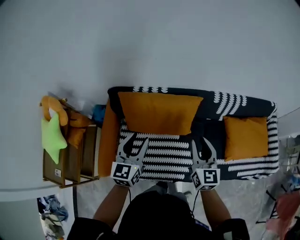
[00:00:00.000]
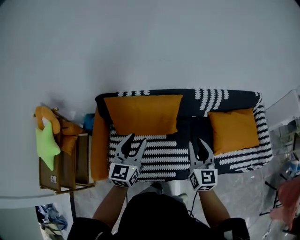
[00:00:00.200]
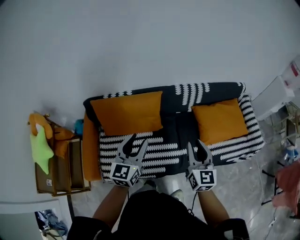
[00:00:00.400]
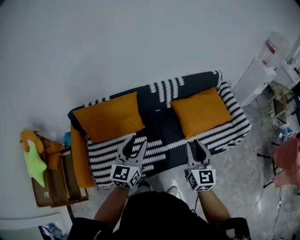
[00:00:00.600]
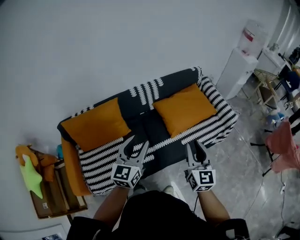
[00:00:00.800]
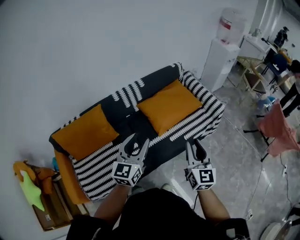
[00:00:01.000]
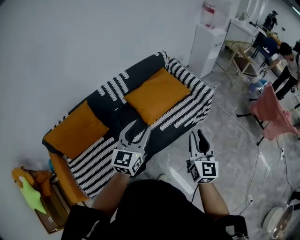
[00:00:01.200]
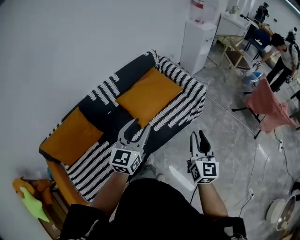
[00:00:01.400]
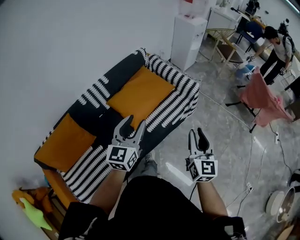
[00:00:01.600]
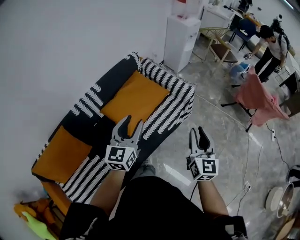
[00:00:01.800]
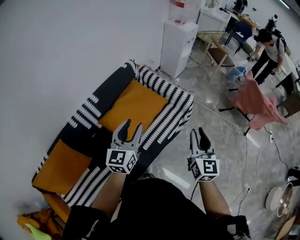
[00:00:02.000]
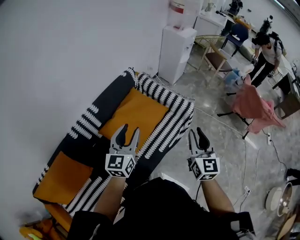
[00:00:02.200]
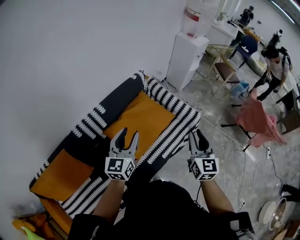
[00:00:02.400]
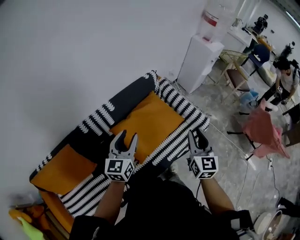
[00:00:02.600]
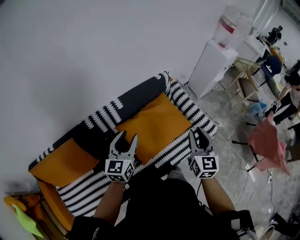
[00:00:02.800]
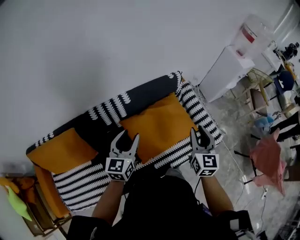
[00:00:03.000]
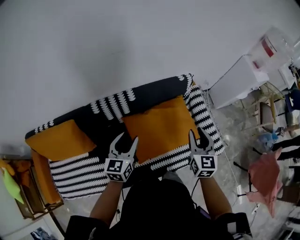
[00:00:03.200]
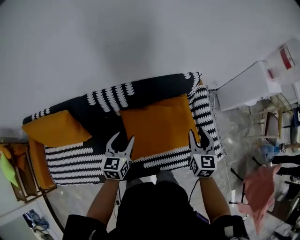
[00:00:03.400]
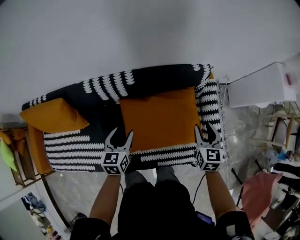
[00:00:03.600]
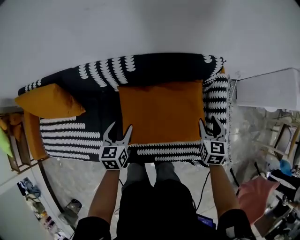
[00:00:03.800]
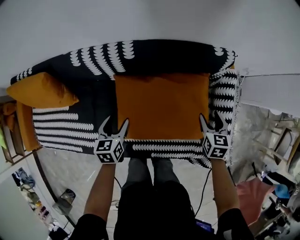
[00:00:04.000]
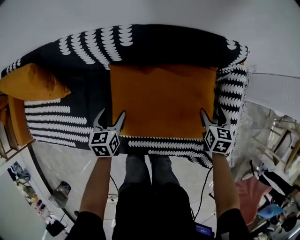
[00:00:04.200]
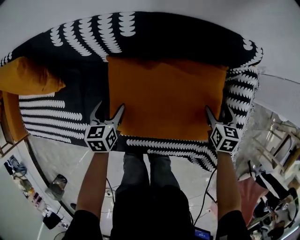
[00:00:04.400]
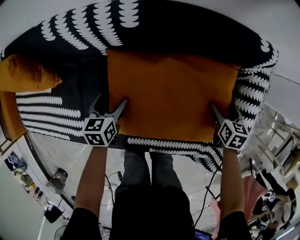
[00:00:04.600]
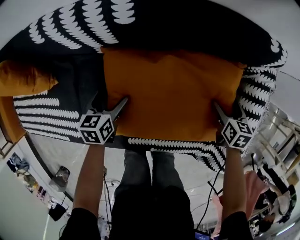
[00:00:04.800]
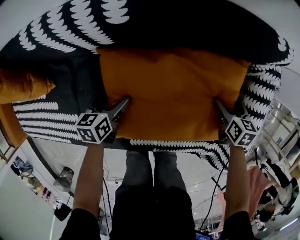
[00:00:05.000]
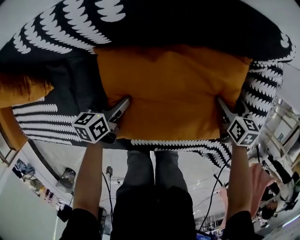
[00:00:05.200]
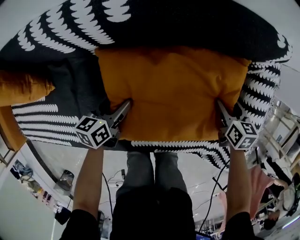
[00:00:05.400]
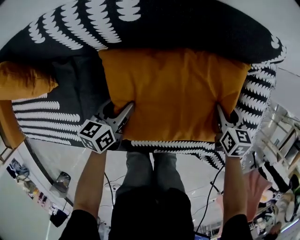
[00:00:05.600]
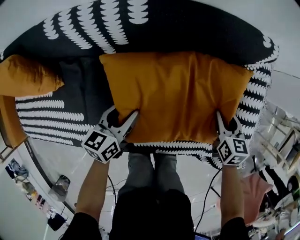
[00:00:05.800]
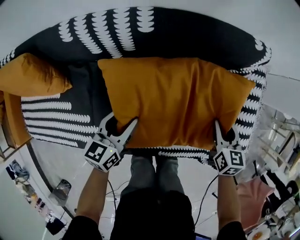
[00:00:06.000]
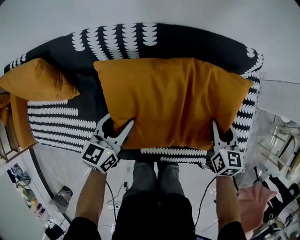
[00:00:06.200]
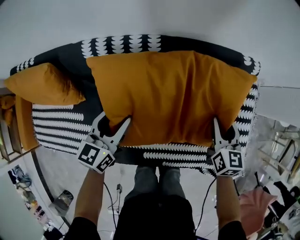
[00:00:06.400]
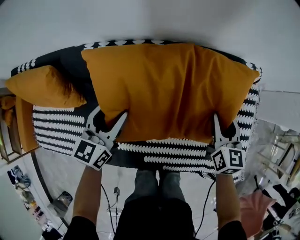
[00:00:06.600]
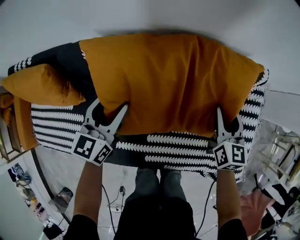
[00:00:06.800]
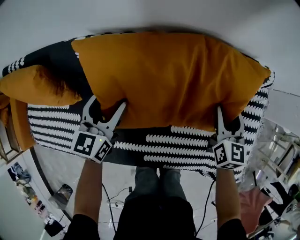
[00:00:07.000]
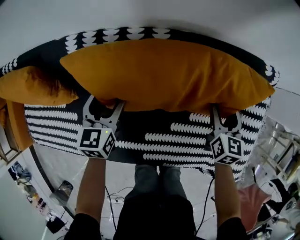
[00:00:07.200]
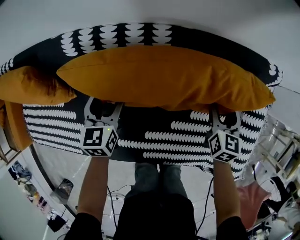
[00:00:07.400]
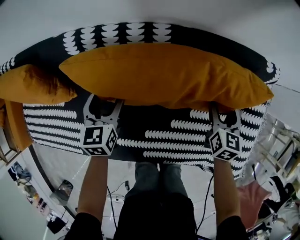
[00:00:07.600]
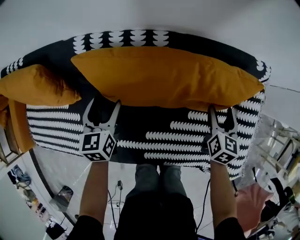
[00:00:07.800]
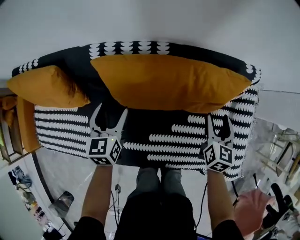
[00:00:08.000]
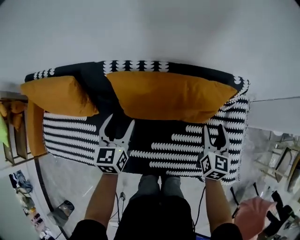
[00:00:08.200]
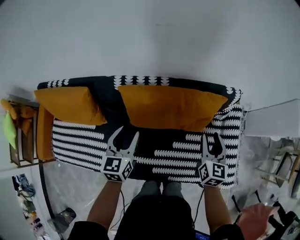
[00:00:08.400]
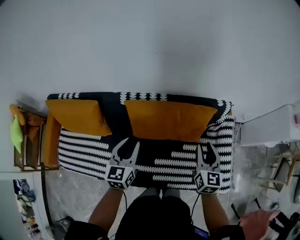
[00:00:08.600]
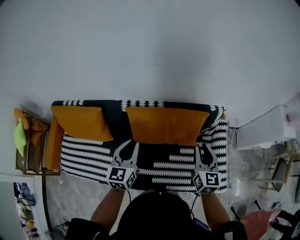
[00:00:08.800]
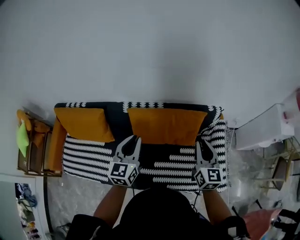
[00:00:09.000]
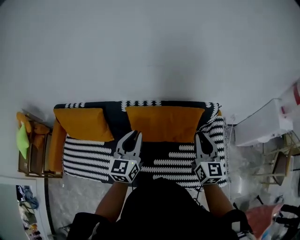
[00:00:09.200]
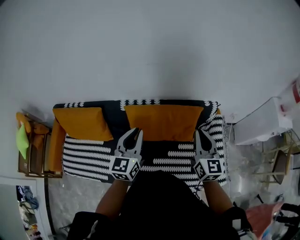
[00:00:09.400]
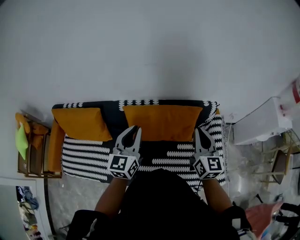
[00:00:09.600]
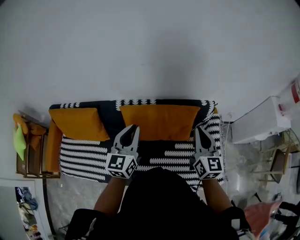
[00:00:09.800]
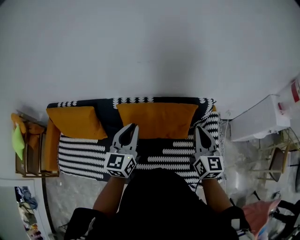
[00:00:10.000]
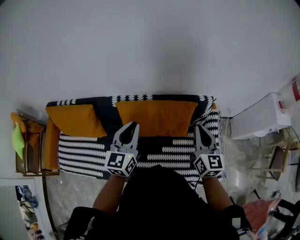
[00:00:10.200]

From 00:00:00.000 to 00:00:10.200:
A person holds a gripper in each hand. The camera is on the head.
From 00:00:00.000 to 00:00:01.400: The pair of grippers is taken some 60 cm. The left gripper rotates roughly 50 degrees. Meanwhile the right gripper swivels roughly 50 degrees.
From 00:00:01.400 to 00:00:03.000: Both grippers travel together forward and to the left, roughly 35 cm. The left gripper turns by approximately 20 degrees. The right gripper turns by approximately 20 degrees.
From 00:00:03.000 to 00:00:04.400: The grippers both shift downward by roughly 40 cm. The right gripper angles its fingers downward, by roughly 40 degrees, and opens; the left gripper tilts its fingers some 40 degrees downward.
From 00:00:04.400 to 00:00:05.800: The left gripper travels downward and back again, approximately 10 cm each way, and rotates some 30 degrees; the right gripper reaches some 5 cm downward, then returns, and closes.
From 00:00:05.800 to 00:00:07.200: The left gripper moves to the left and forward, approximately 15 cm, goes upward and returns, roughly 15 cm each way, and rotates approximately 30 degrees. The right gripper is displaced forward and to the left by approximately 15 cm, and reaches approximately 15 cm upward, then returns.
From 00:00:07.200 to 00:00:08.800: The two grippers go approximately 35 cm upward and backward. The left gripper rotates approximately 20 degrees, and closes its fingers, while the right gripper rotates about 20 degrees.
From 00:00:08.800 to 00:00:10.200: The left gripper heads to the right and upward, covering approximately 10 cm, while the right gripper heads upward, covering roughly 5 cm.

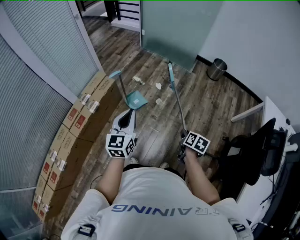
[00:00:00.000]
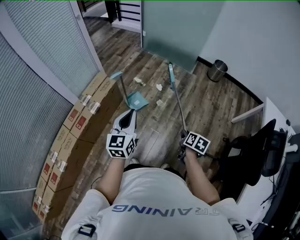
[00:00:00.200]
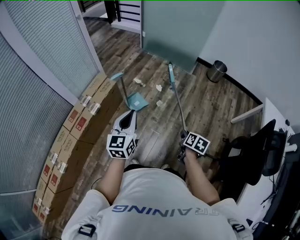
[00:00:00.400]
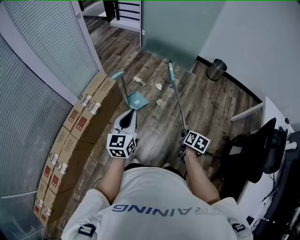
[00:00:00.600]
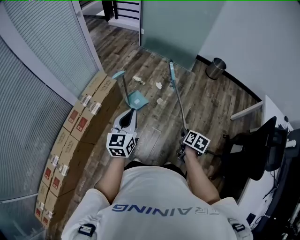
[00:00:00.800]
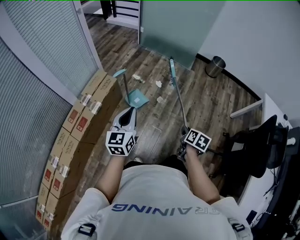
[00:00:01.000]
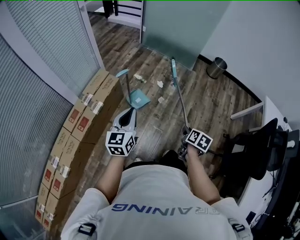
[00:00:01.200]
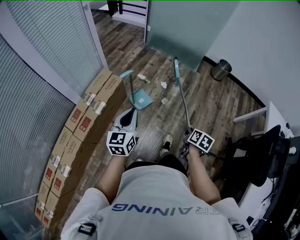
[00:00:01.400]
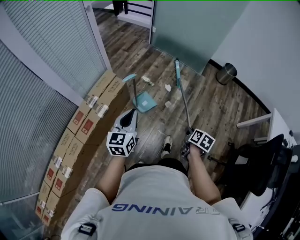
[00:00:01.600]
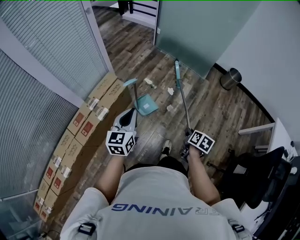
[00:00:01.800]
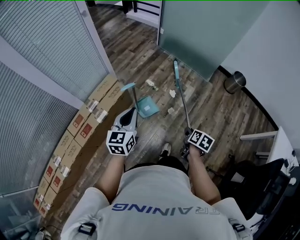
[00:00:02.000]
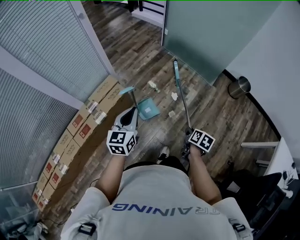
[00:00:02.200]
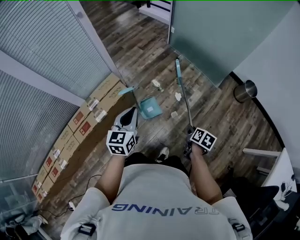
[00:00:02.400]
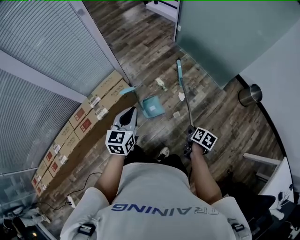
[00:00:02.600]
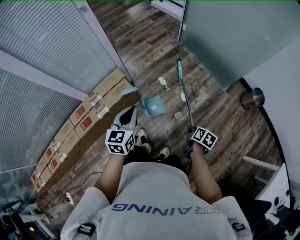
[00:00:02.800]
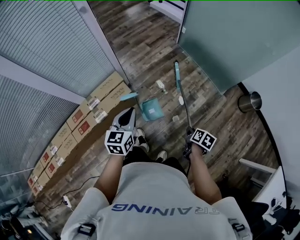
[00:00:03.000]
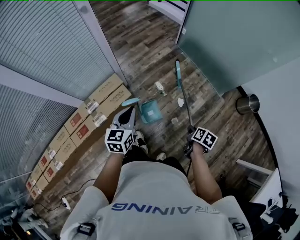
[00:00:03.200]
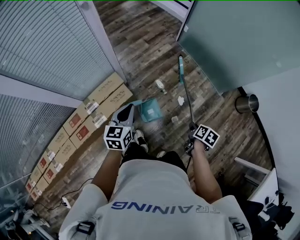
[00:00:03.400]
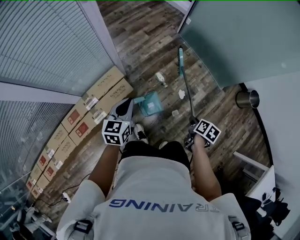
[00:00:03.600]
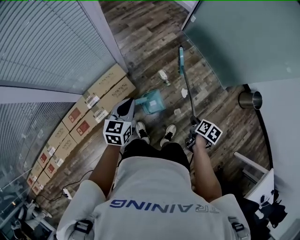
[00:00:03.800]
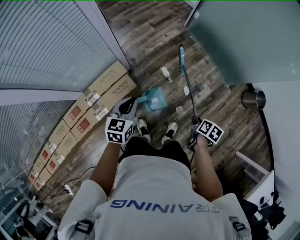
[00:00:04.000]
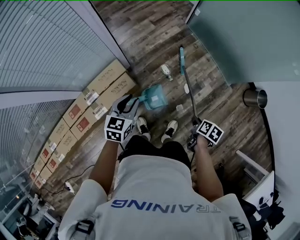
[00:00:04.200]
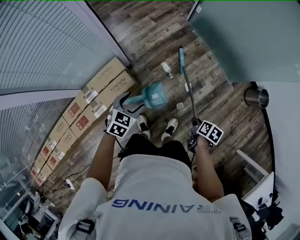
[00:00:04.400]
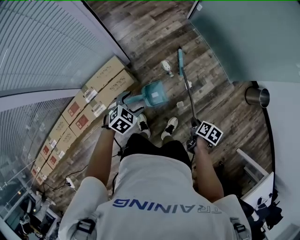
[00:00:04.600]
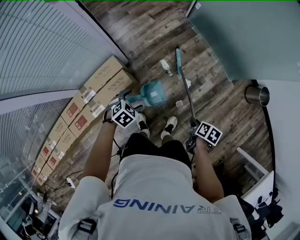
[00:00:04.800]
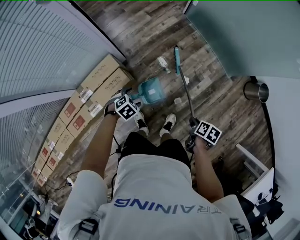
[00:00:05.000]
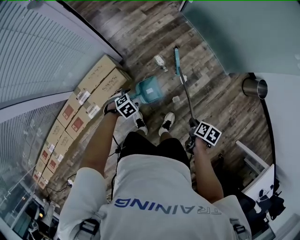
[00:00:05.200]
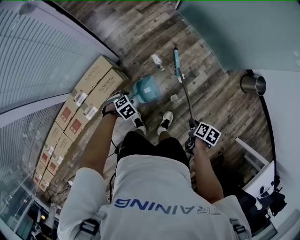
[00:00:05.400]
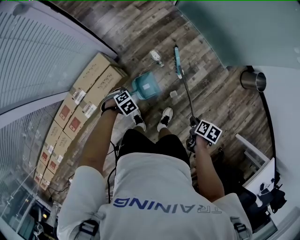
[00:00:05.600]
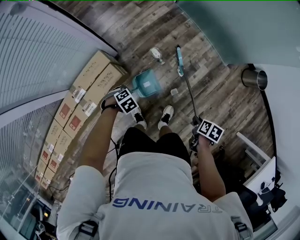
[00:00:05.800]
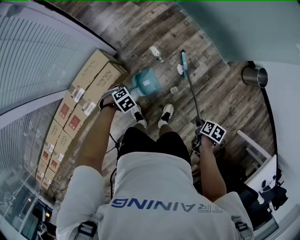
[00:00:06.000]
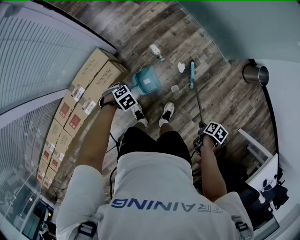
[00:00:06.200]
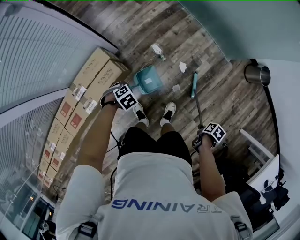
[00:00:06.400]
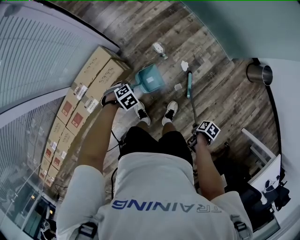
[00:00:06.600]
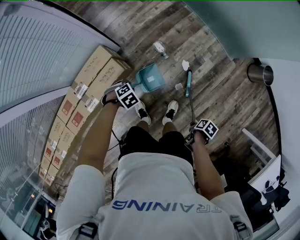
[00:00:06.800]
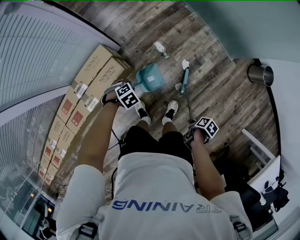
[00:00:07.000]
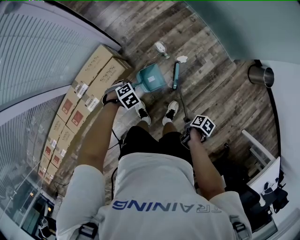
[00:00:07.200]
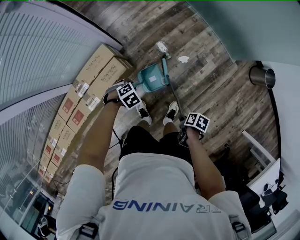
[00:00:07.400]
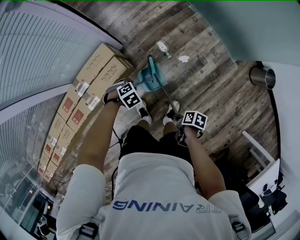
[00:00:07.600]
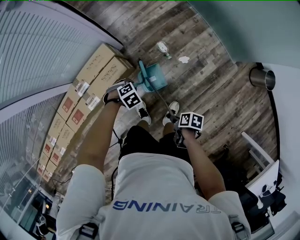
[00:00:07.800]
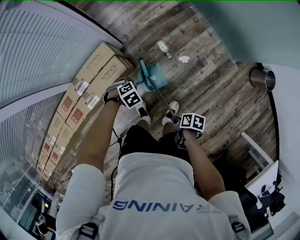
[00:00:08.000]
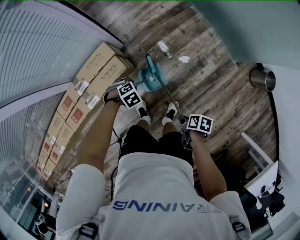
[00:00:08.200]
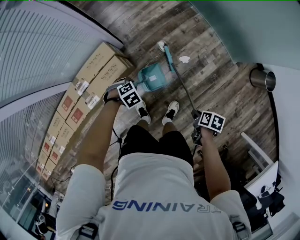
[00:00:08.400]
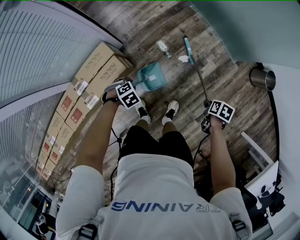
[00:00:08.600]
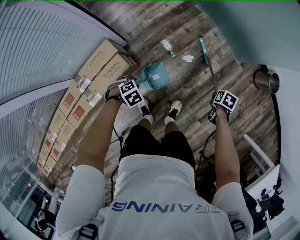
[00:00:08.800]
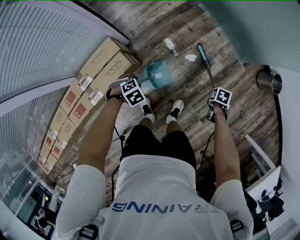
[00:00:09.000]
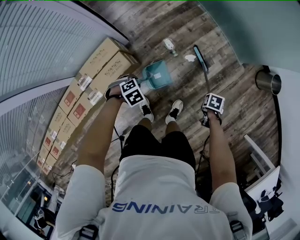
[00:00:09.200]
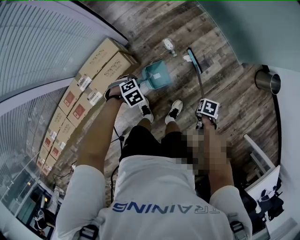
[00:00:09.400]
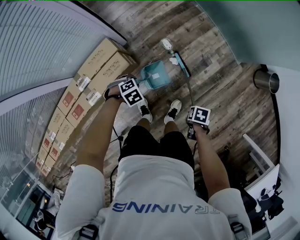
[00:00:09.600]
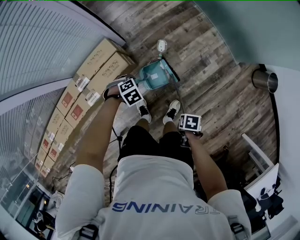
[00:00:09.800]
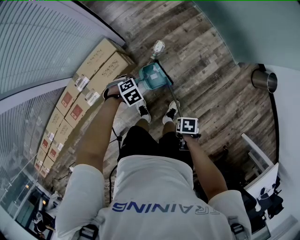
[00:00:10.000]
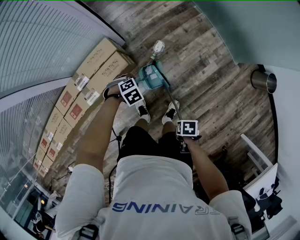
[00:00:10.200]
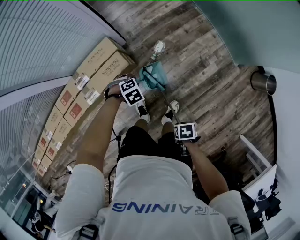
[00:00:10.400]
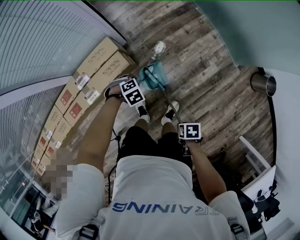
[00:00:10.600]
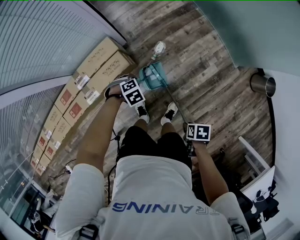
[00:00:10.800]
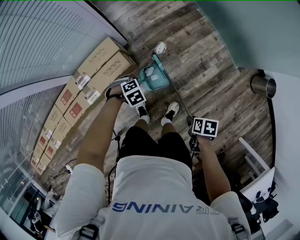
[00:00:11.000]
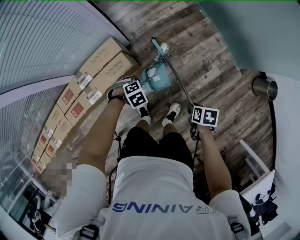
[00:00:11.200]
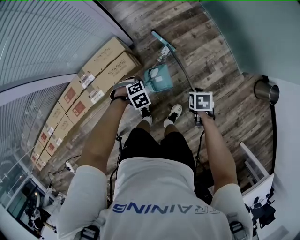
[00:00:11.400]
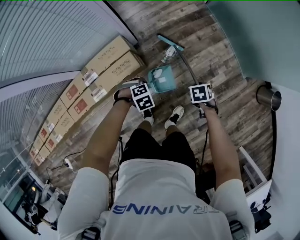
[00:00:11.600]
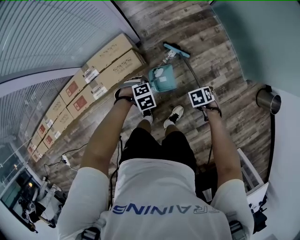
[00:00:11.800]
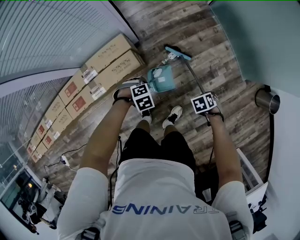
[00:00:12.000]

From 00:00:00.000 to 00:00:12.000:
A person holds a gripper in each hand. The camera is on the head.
From 00:00:00.000 to 00:00:01.600: The left gripper ends up roughly 15 cm from where it was.
From 00:00:01.600 to 00:00:03.000: The left gripper moves approximately 25 cm.
From 00:00:03.000 to 00:00:04.400: The left gripper shifts about 15 cm downward, changes its angle by about 40 degrees, and opens its fingers.
From 00:00:04.400 to 00:00:06.000: The left gripper heads downward, covering approximately 20 cm, tips its fingers downward by approximately 40 degrees, and closes.

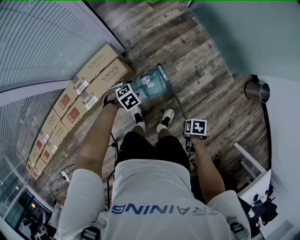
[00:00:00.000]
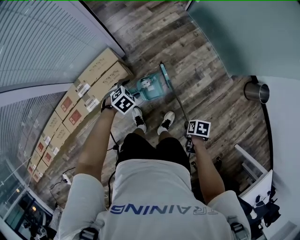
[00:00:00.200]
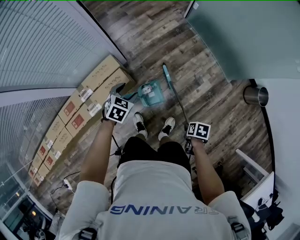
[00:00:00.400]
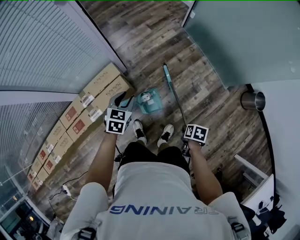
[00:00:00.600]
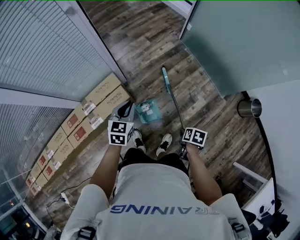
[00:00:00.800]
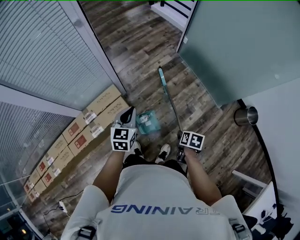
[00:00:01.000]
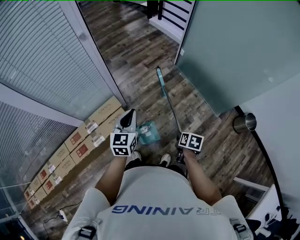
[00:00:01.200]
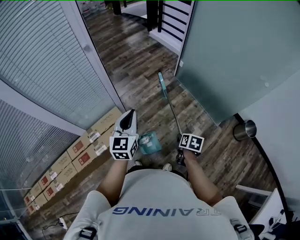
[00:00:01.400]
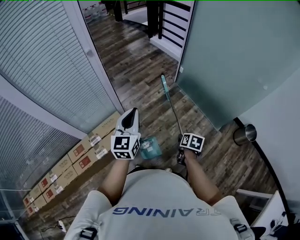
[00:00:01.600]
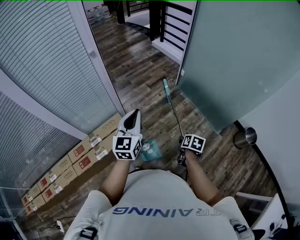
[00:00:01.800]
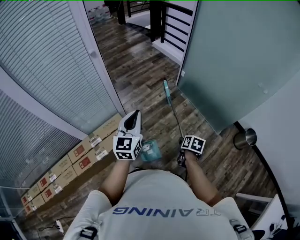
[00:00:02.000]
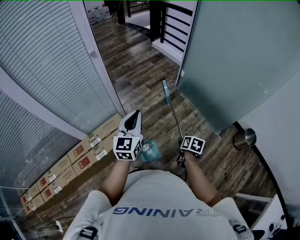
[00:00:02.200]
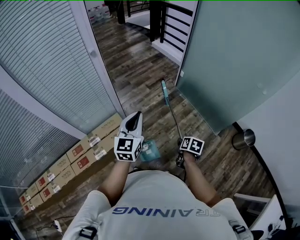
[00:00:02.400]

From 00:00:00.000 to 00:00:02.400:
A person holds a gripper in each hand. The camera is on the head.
From 00:00:00.000 to 00:00:01.200: The left gripper heads upward, covering about 35 cm, points its fingers approximately 60 degrees further upward, and closes its fingers.
From 00:00:01.200 to 00:00:02.400: The left gripper heads upward, covering approximately 10 cm.
